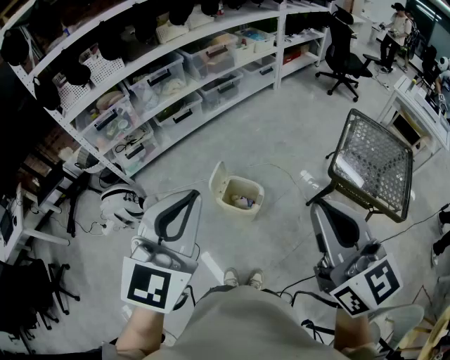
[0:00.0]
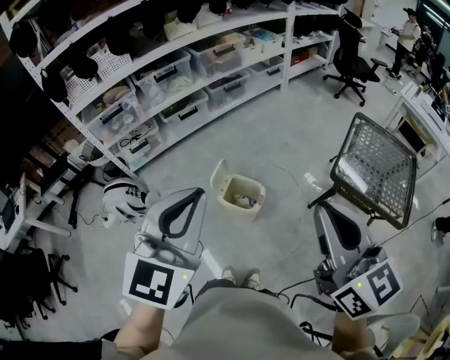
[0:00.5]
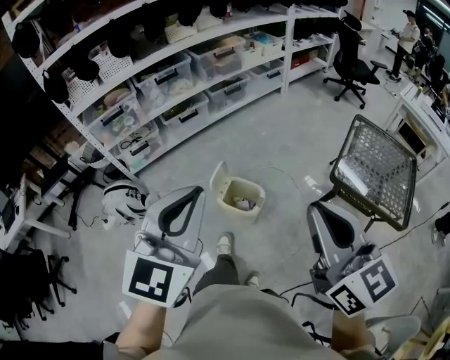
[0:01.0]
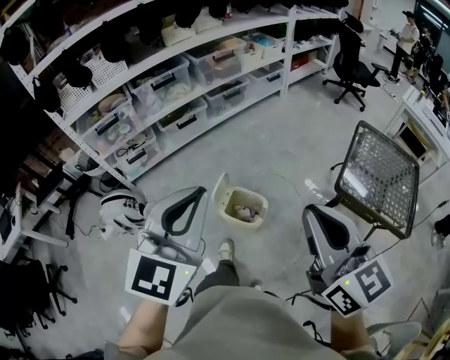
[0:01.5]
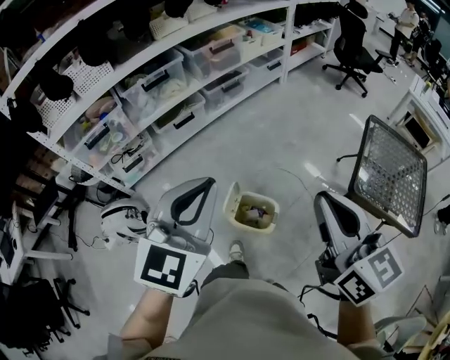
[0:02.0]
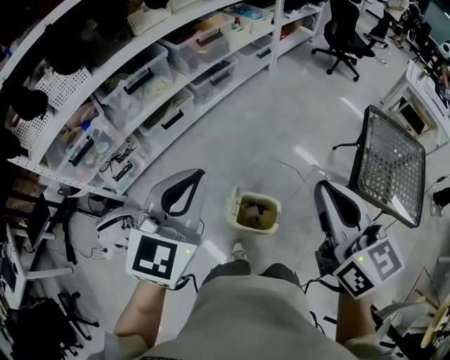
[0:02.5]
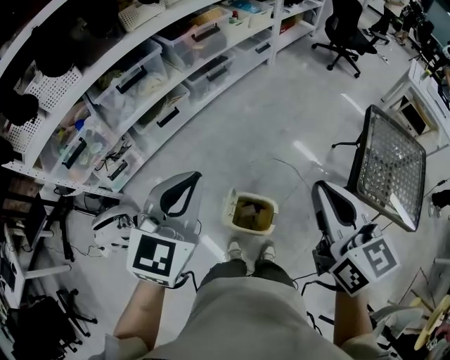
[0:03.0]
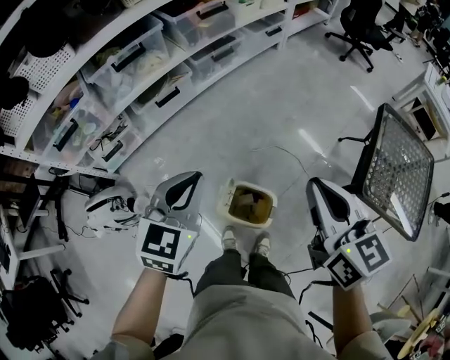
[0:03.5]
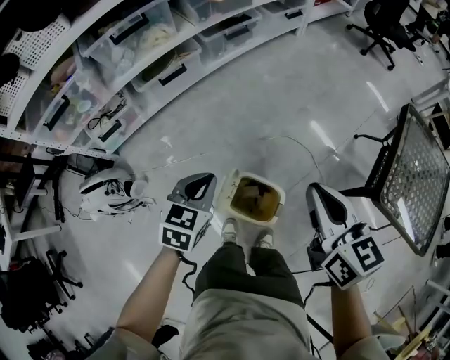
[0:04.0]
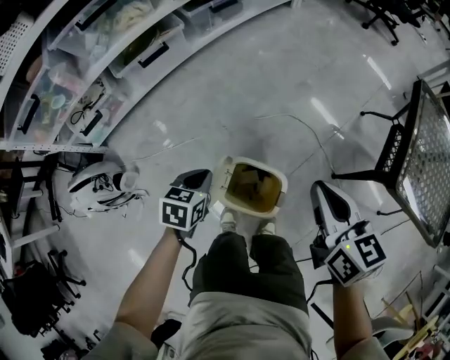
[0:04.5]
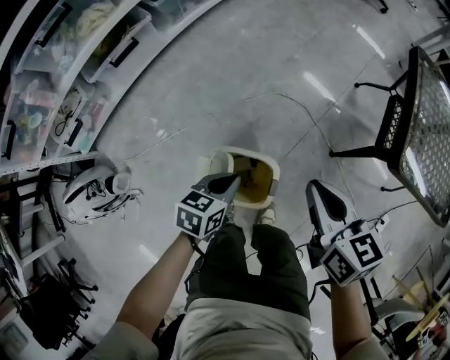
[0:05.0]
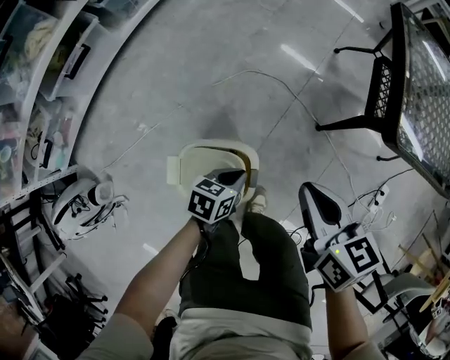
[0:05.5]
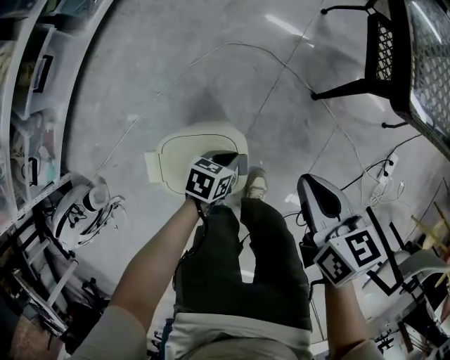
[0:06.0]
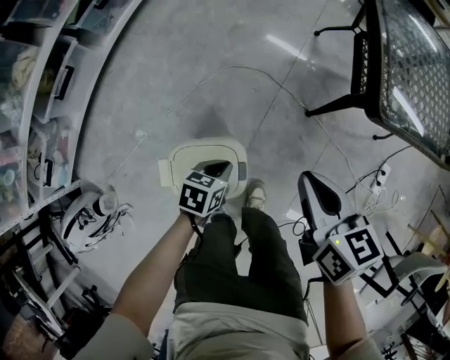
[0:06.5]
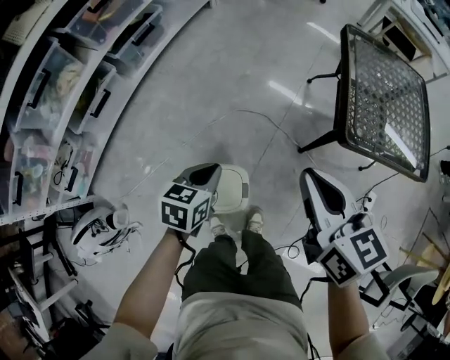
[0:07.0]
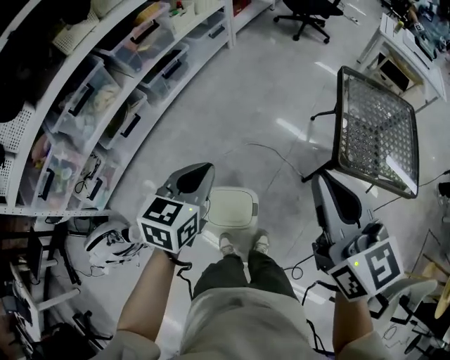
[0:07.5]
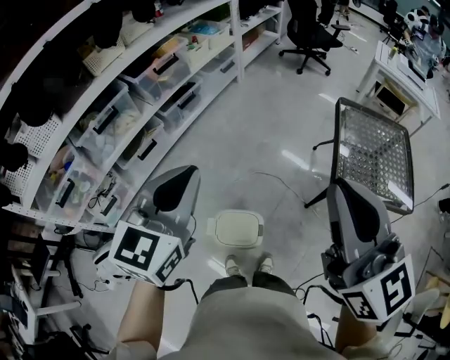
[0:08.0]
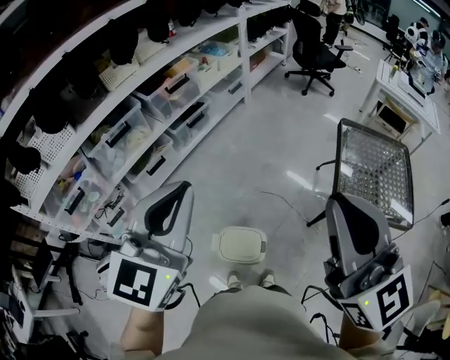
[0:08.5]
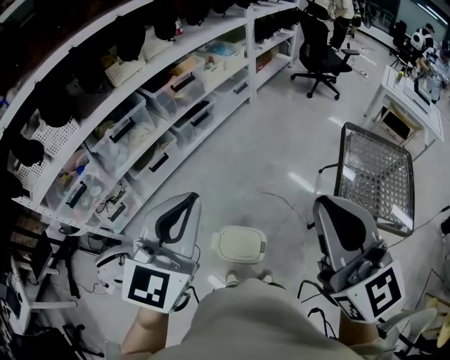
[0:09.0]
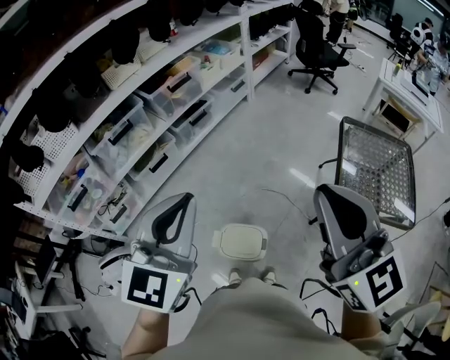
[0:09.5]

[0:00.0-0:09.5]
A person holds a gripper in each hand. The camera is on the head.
0:00.0 to 0:02.0: Both grippers travel together forward, roughly 20 cm.
0:02.0 to 0:04.0: The two grippers go some 35 cm downward and forward. The left gripper rotates roughly 30 degrees.
0:04.0 to 0:05.5: The two grippers go approximately 30 cm downward. The right gripper rotates roughly 30 degrees, while the left gripper rotates about 40 degrees.
0:05.5 to 0:07.5: Both grippers travel together upward, approximately 50 cm. The left gripper rotates some 40 degrees. Meanwhile the right gripper rotates roughly 30 degrees.
0:07.5 to 0:09.5: The left gripper moves upward, roughly 25 cm, and changes its angle by roughly 30 degrees. The right gripper heads upward, covering roughly 15 cm, and changes its angle by roughly 20 degrees.

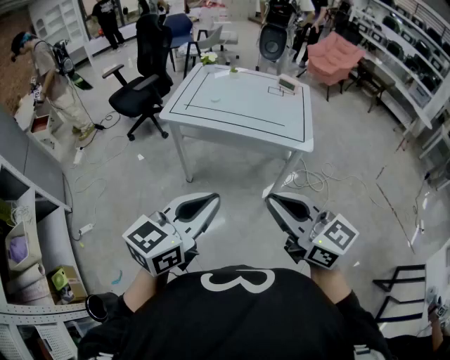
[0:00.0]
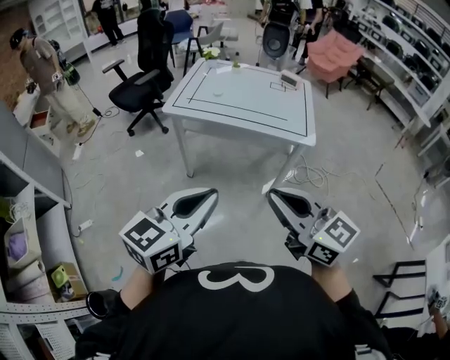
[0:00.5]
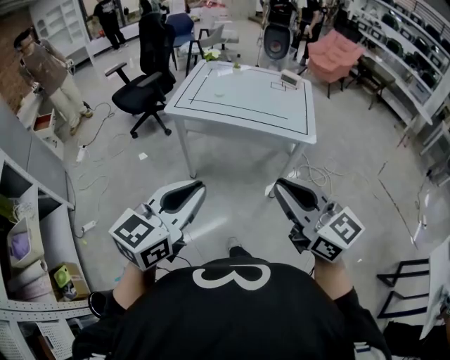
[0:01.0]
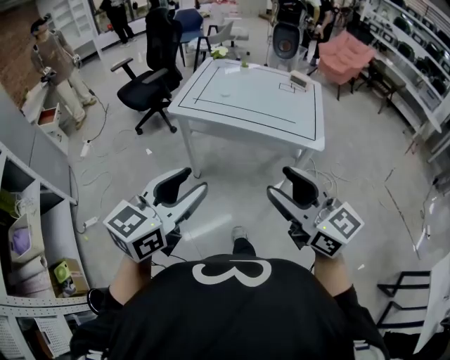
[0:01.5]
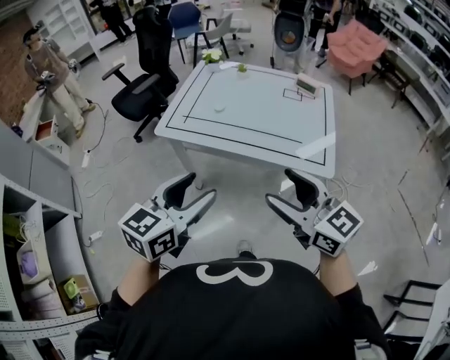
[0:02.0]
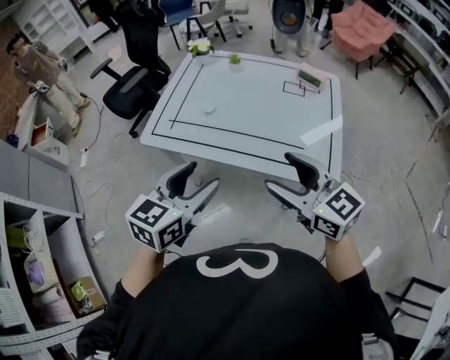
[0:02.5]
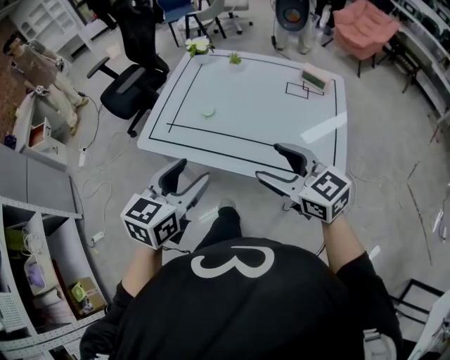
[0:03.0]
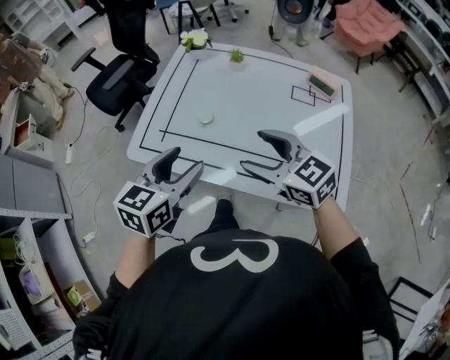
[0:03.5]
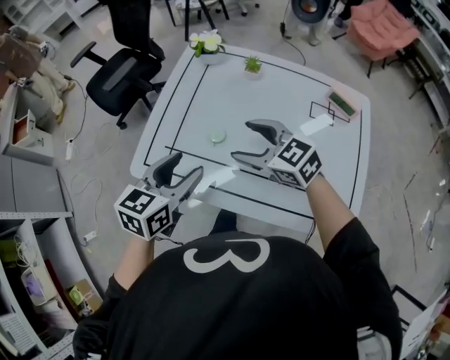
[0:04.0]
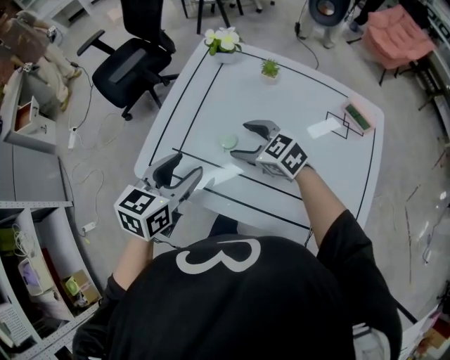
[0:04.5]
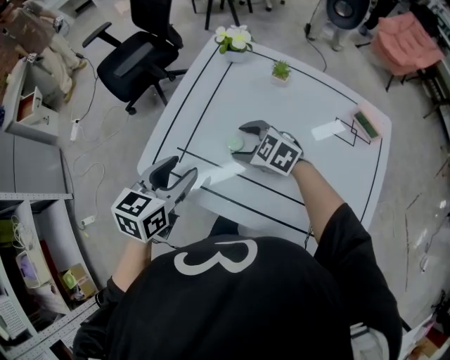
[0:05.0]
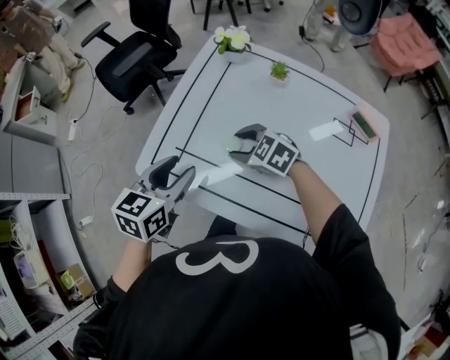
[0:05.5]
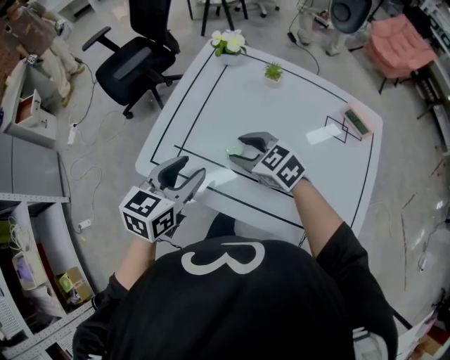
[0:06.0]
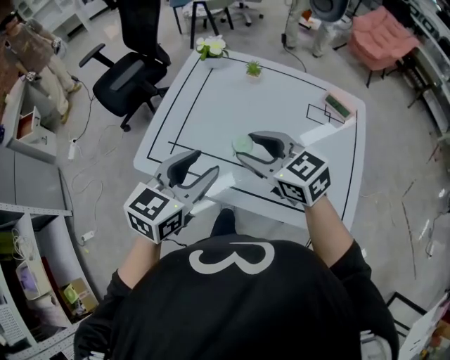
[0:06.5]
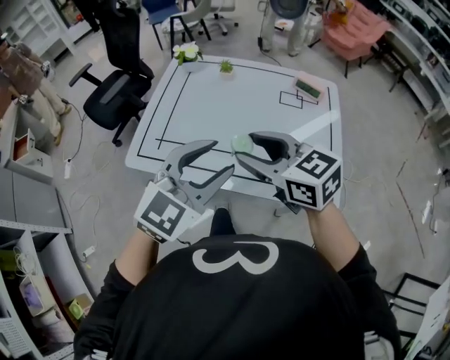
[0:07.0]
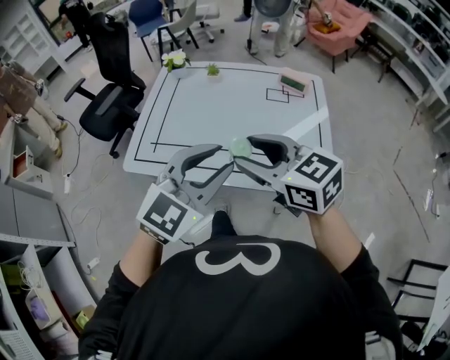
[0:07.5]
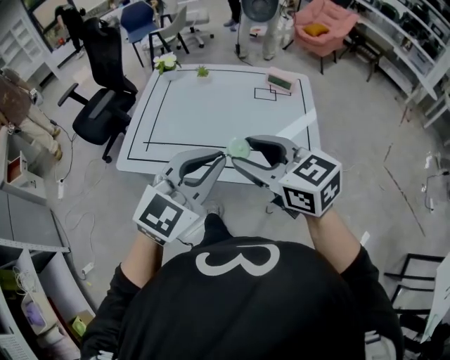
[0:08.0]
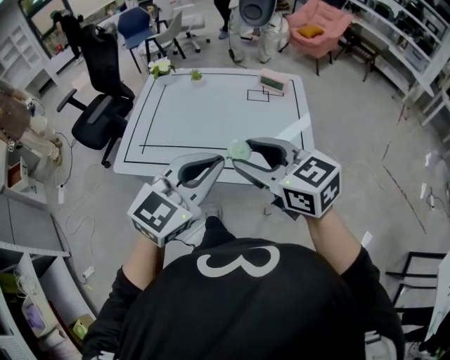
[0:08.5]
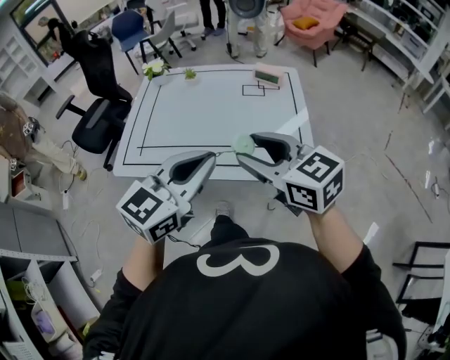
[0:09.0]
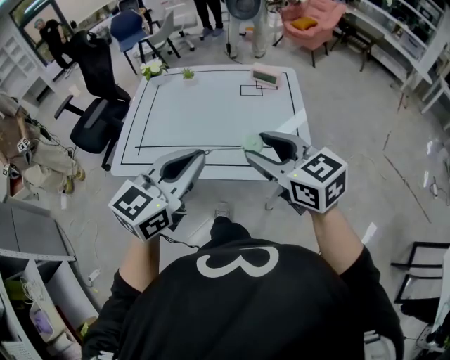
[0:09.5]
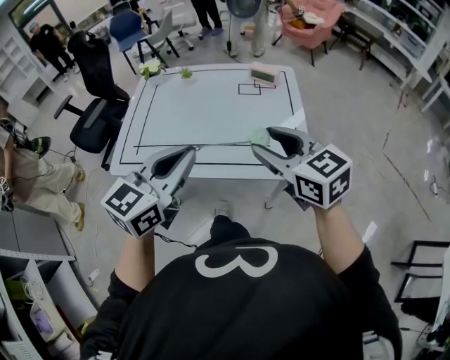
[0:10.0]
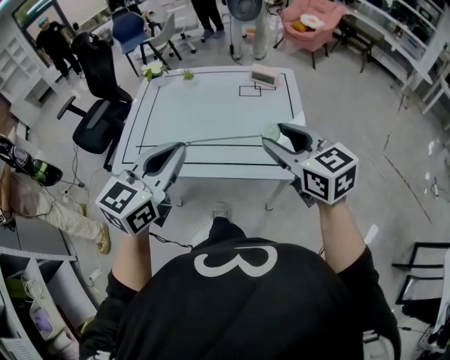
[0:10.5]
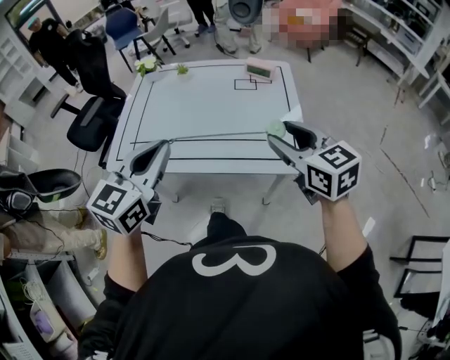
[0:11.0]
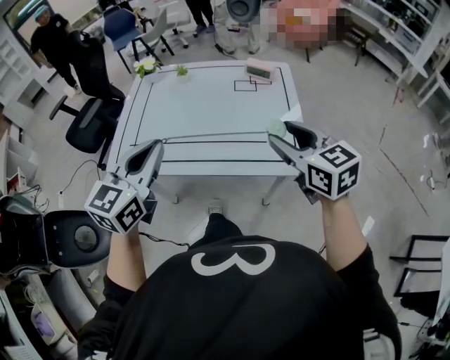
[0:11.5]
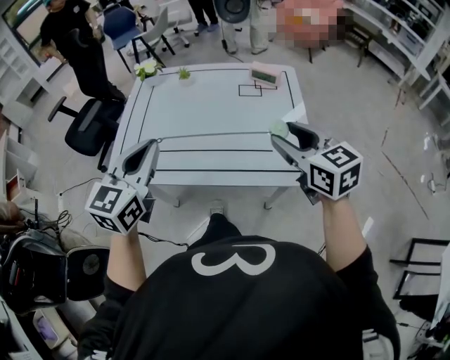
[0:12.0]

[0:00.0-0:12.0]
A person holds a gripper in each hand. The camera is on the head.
0:00.0 to 0:02.0: The grippers both shift forward by about 20 cm. The right gripper opens. The left gripper opens up.
0:02.0 to 0:04.0: Both grippers move forward, roughly 40 cm. The right gripper changes its angle by some 30 degrees.
0:04.0 to 0:06.0: The right gripper heads downward, covering roughly 5 cm.
0:06.0 to 0:08.0: The right gripper is displaced backward, upward and to the right by roughly 35 cm, and changes its angle by some 30 degrees, while the left gripper goes about 30 cm backward, to the right and upward, rotates about 50 degrees, and closes its fingers.
0:08.0 to 0:10.0: The right gripper heads to the right, covering about 10 cm, while the left gripper swivels approximately 20 degrees.
0:10.0 to 0:12.0: The left gripper goes approximately 10 cm to the left and forward; the right gripper is displaced forward by roughly 5 cm.

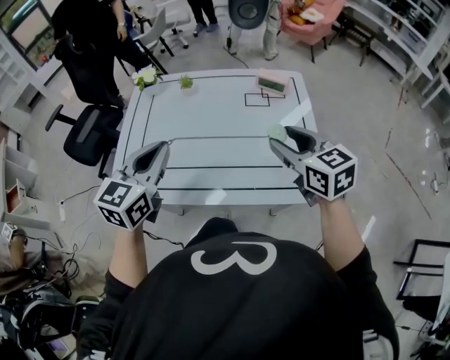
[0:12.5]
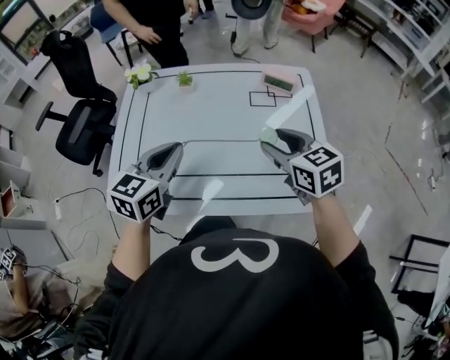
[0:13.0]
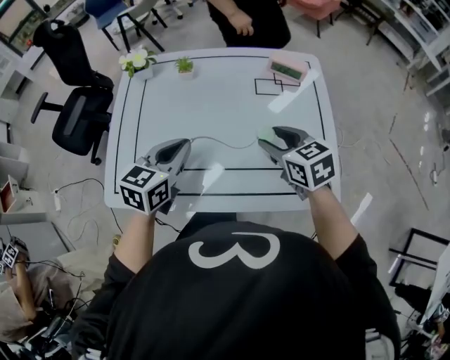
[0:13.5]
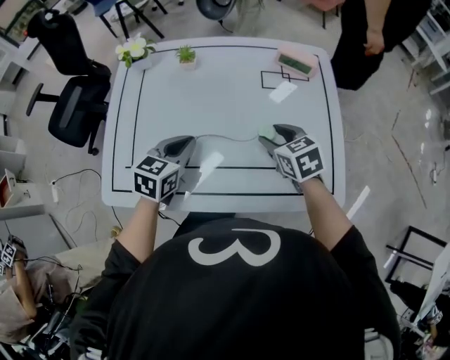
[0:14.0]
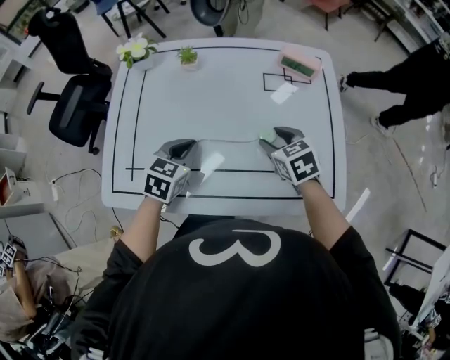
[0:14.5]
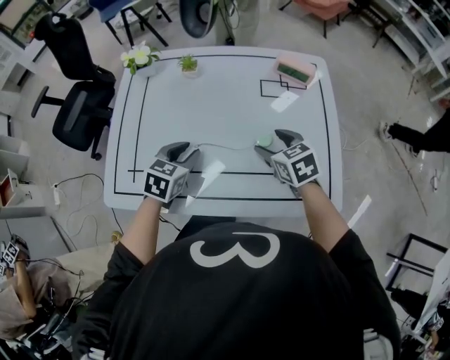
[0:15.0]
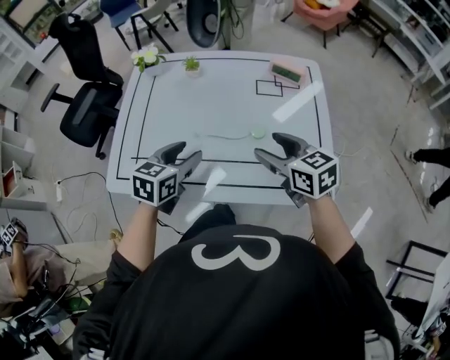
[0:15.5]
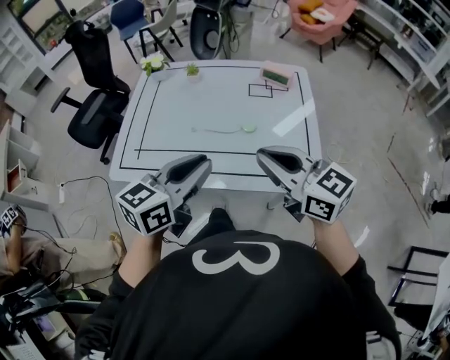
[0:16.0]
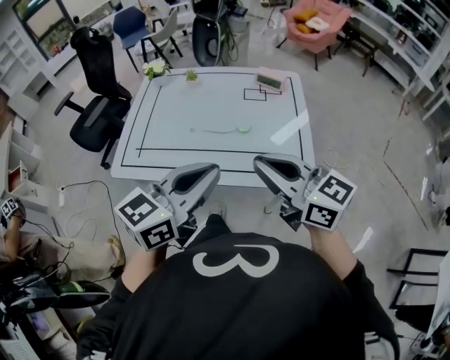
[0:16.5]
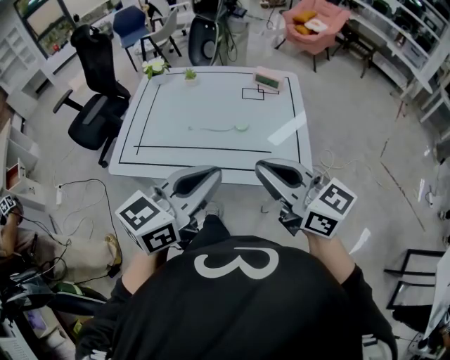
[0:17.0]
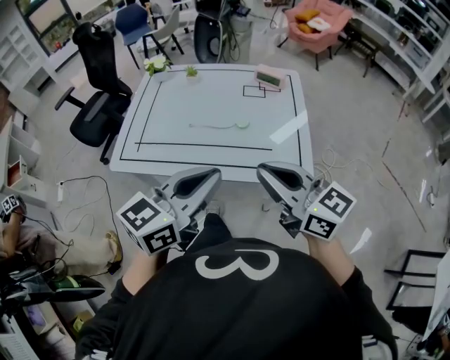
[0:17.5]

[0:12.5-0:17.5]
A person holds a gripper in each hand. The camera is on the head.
0:12.5 to 0:15.0: The two grippers go about 25 cm downward and forward. The right gripper swivels about 20 degrees; the left gripper changes its angle by some 30 degrees, and opens up.
0:15.0 to 0:17.5: The right gripper is displaced backward and upward by roughly 40 cm, tilts its fingers about 40 degrees upward, and closes. The left gripper moves backward, upward and to the right, approximately 40 cm, angles its fingers upward, by some 40 degrees, and closes its fingers.
